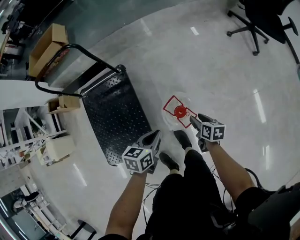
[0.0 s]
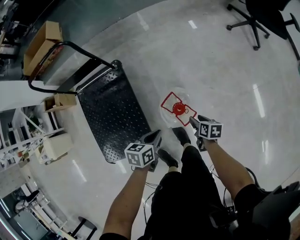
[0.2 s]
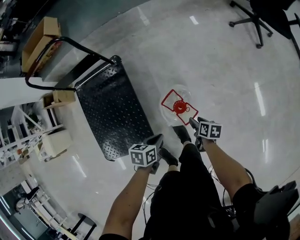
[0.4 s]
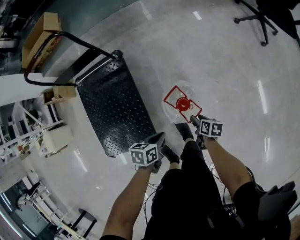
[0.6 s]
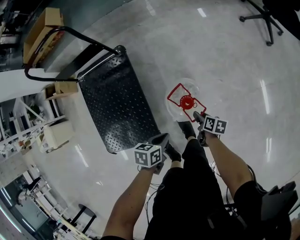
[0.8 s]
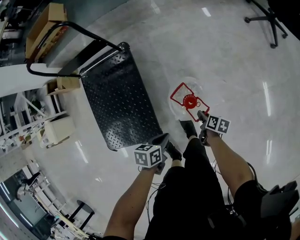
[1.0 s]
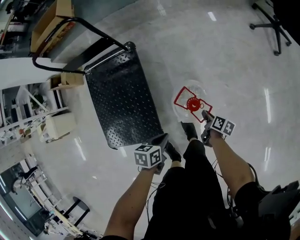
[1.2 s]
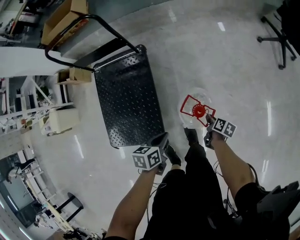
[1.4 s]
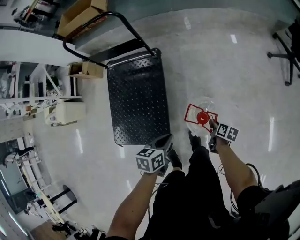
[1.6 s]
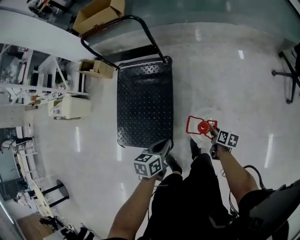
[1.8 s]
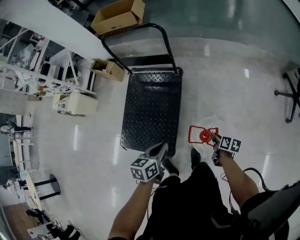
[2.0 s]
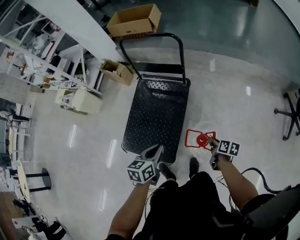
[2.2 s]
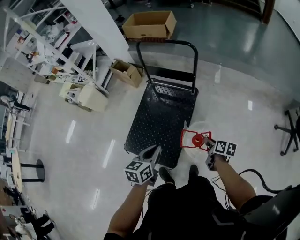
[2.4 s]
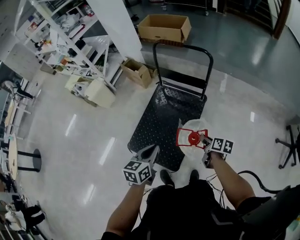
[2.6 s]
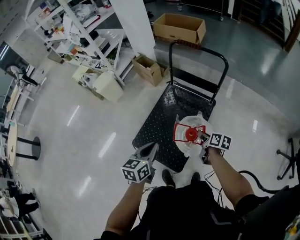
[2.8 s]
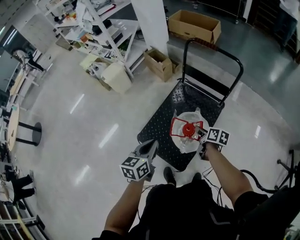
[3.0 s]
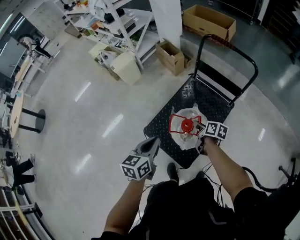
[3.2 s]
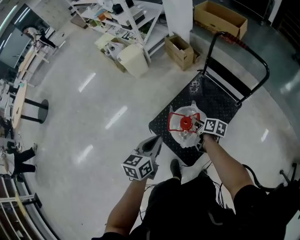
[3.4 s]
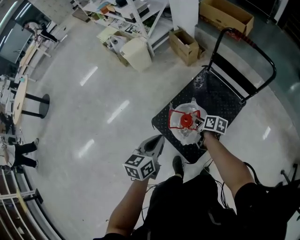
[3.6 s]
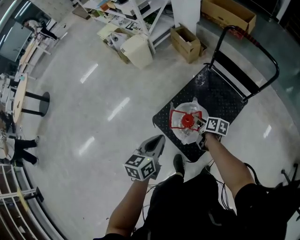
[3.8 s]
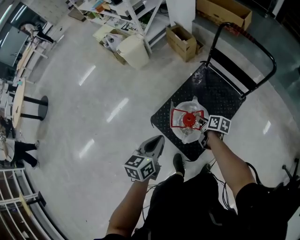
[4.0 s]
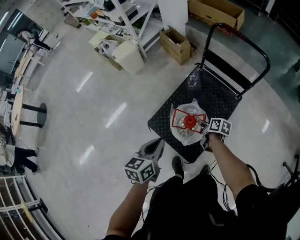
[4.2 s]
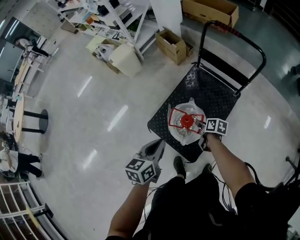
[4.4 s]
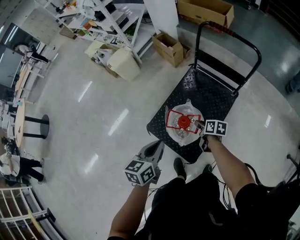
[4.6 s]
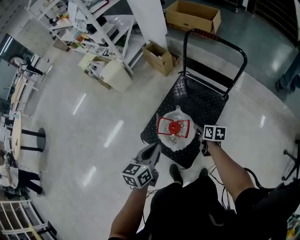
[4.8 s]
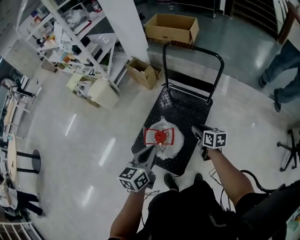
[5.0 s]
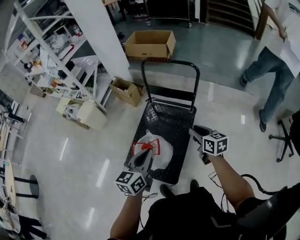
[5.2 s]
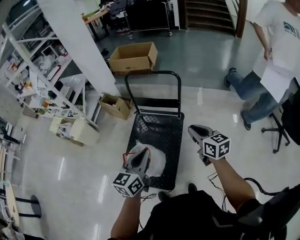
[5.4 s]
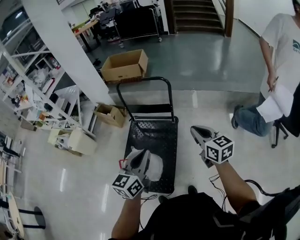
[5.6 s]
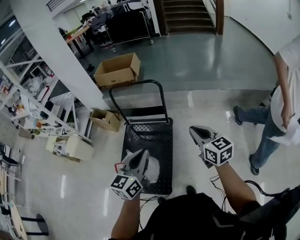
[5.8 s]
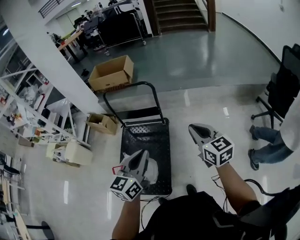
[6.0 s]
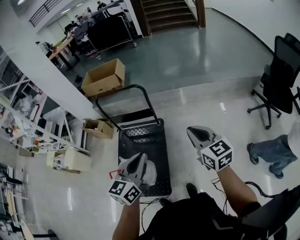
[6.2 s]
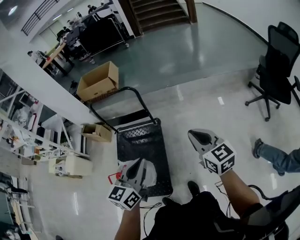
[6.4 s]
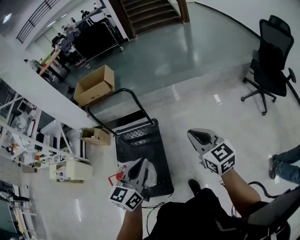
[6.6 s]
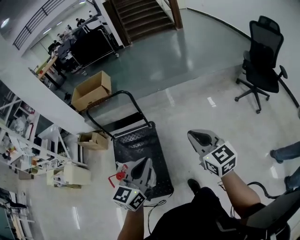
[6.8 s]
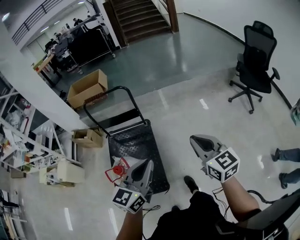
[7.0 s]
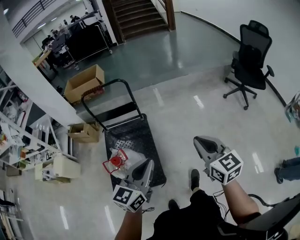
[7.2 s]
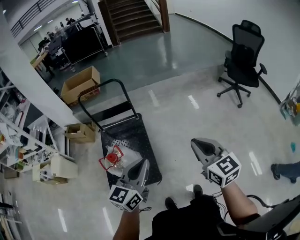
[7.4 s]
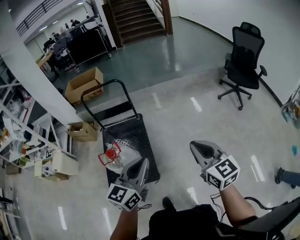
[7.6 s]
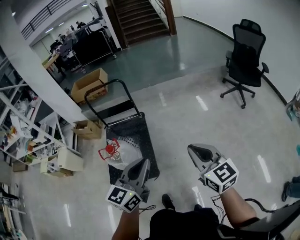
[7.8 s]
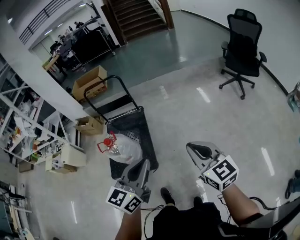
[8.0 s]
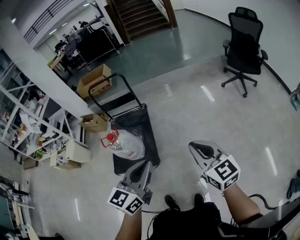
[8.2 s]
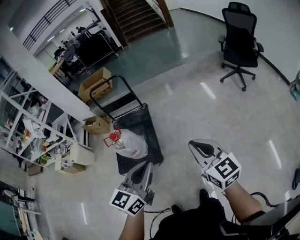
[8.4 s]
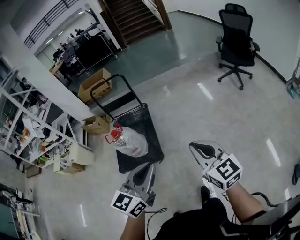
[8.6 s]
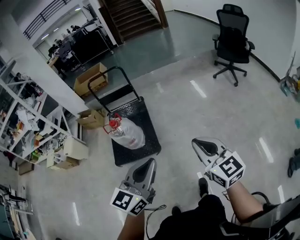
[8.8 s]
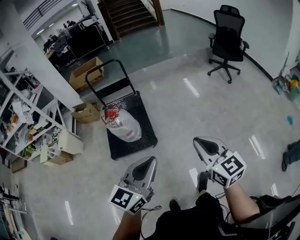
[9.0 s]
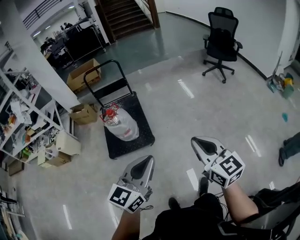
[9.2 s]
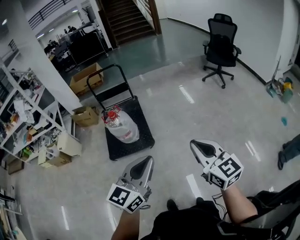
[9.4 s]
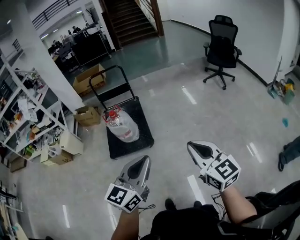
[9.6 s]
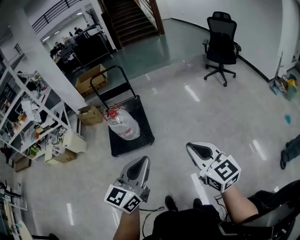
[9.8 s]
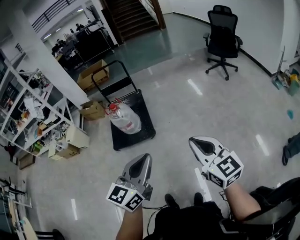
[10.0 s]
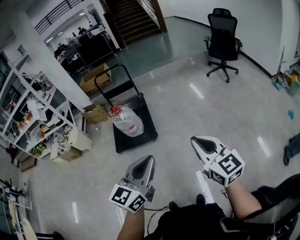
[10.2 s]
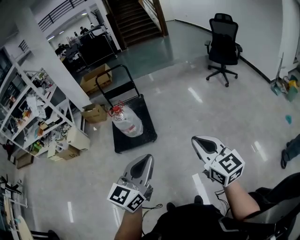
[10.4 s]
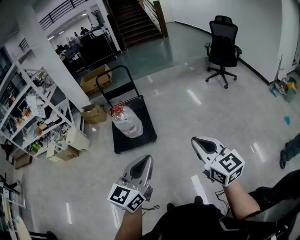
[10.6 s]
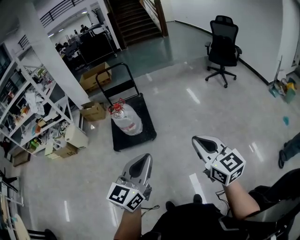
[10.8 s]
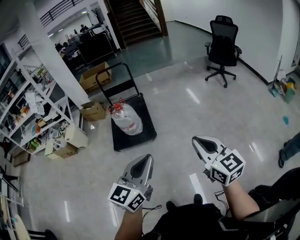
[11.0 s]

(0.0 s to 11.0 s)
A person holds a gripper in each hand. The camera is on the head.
0.0 s - 1.6 s: The left gripper moves to the left, approximately 5 cm, and reaches about 15 cm downward, then returns; the right gripper moves downward, approximately 10 cm, and closes.
1.6 s - 3.2 s: The pair of grippers is taken roughly 50 cm. The left gripper rotates some 50 degrees; the right gripper rotates approximately 50 degrees.
3.2 s - 4.8 s: The right gripper shifts about 5 cm to the right.
4.8 s - 6.2 s: The left gripper changes place by some 40 cm, and changes its angle by some 40 degrees. The right gripper ends up about 50 cm from where it was, turns by about 50 degrees, and closes up.
6.2 s - 7.8 s: Both grippers move backward, about 40 cm.
7.8 s - 9.4 s: The pair of grippers is taken backward, about 40 cm.
9.4 s - 11.0 s: Both grippers travel together backward, roughly 15 cm.

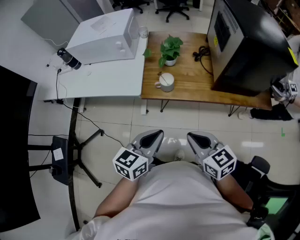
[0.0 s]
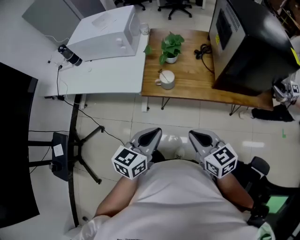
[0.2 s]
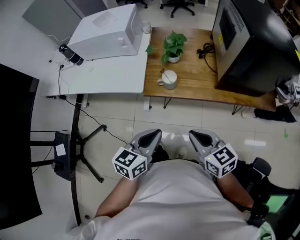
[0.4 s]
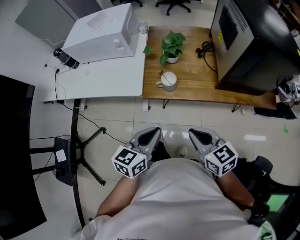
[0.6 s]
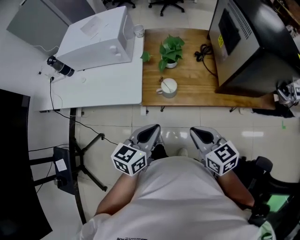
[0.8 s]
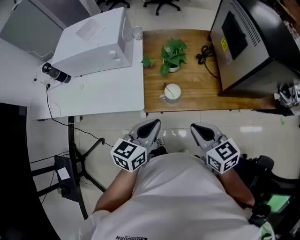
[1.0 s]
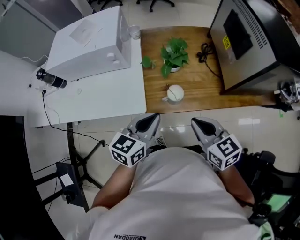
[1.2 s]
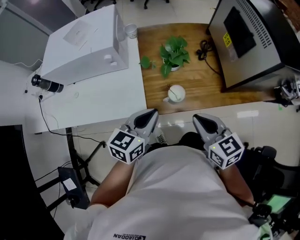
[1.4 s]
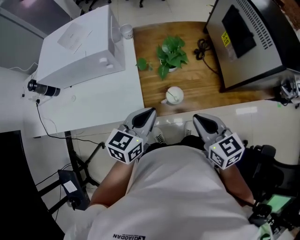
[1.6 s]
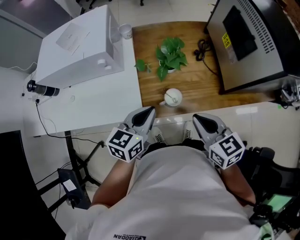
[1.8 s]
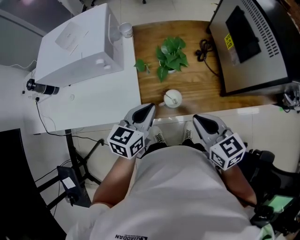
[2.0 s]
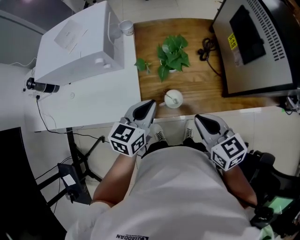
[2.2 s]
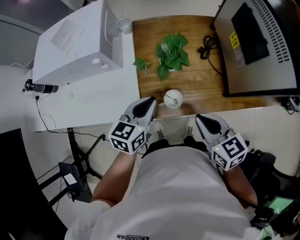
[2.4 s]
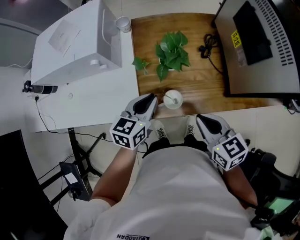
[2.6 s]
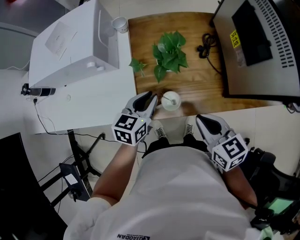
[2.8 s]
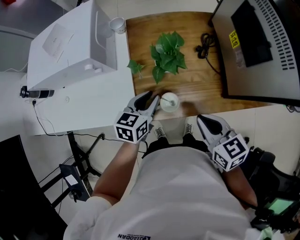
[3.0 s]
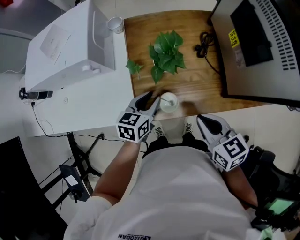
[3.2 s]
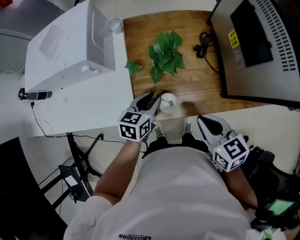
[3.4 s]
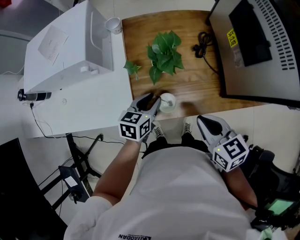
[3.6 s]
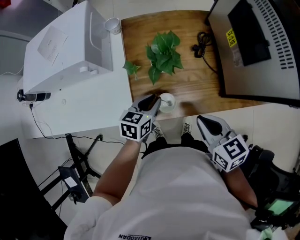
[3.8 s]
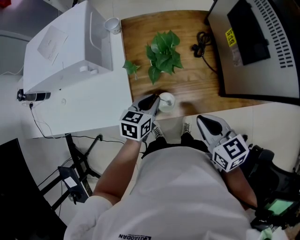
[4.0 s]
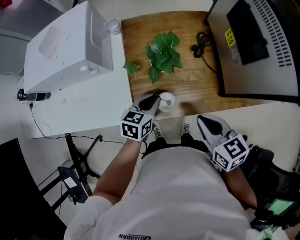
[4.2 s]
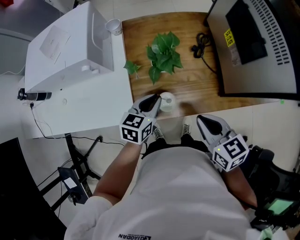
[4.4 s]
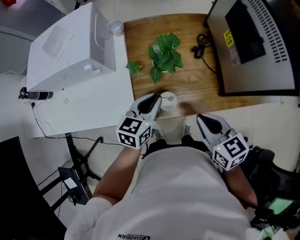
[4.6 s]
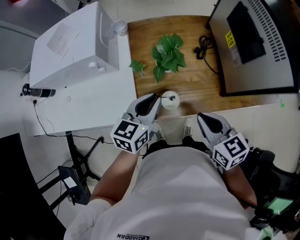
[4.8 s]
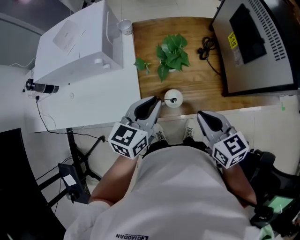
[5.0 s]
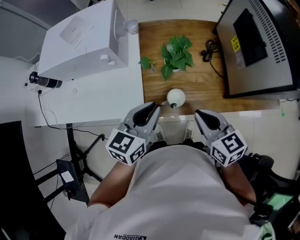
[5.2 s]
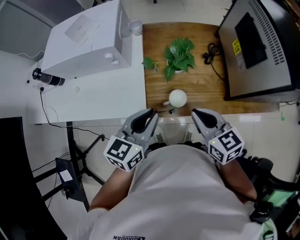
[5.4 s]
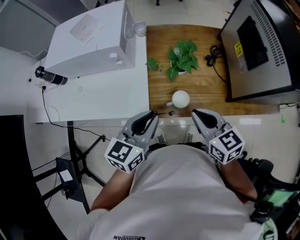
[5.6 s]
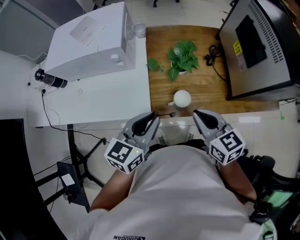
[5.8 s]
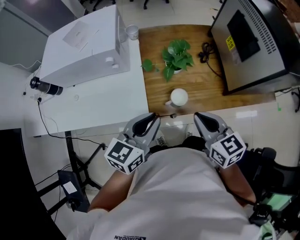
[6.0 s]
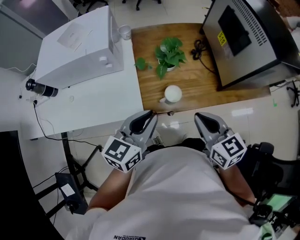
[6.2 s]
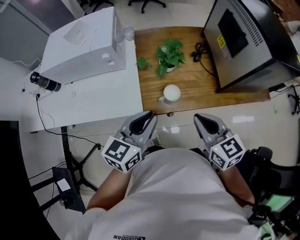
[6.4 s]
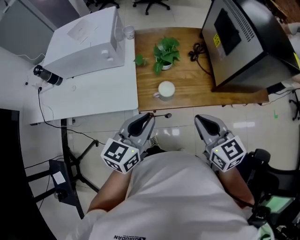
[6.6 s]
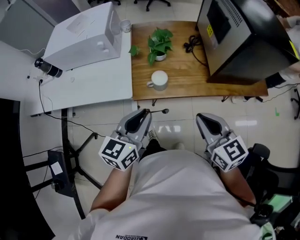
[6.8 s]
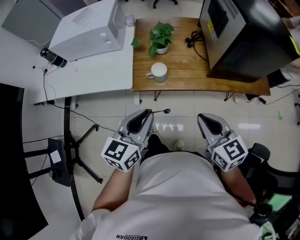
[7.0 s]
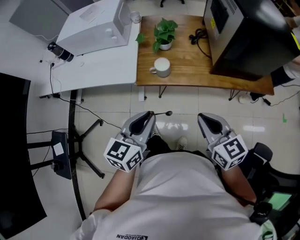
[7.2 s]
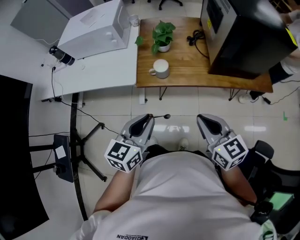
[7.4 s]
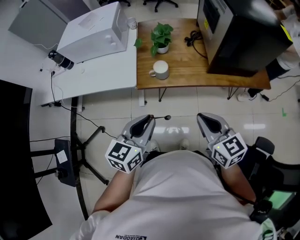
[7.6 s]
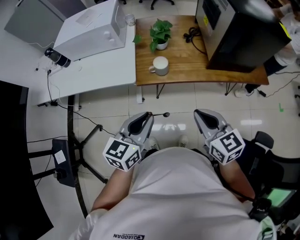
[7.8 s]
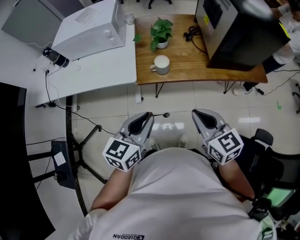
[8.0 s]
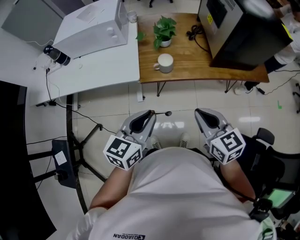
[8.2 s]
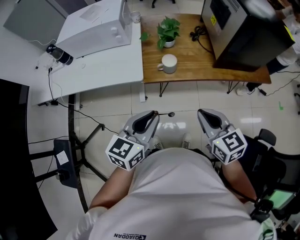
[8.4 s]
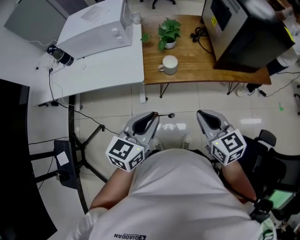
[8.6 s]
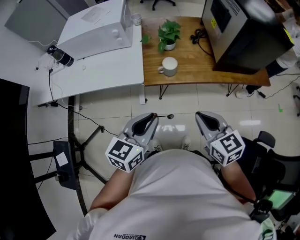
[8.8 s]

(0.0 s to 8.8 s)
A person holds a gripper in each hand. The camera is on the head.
0.0 s - 1.4 s: Both grippers travel together forward, approximately 20 cm.
1.4 s - 3.0 s: The right gripper is displaced forward and to the right by some 10 cm. The left gripper shifts roughly 15 cm forward and downward, and opens its fingers.
3.0 s - 4.4 s: The grippers make only small movements.
4.4 s - 5.8 s: The left gripper is displaced upward, backward and to the left by about 20 cm; the right gripper heads to the left, covering roughly 10 cm.
5.8 s - 7.4 s: The two grippers go some 25 cm backward and to the right.
7.4 s - 8.8 s: Both grippers move to the left, some 5 cm.

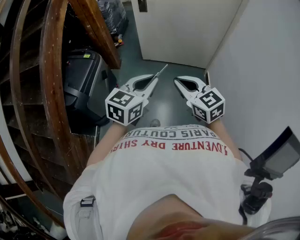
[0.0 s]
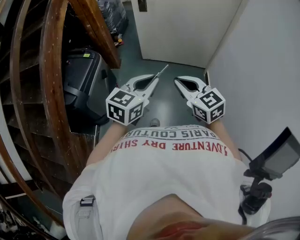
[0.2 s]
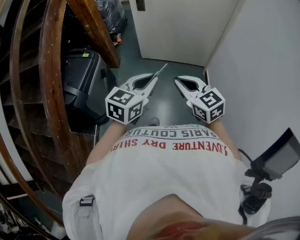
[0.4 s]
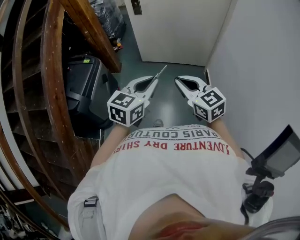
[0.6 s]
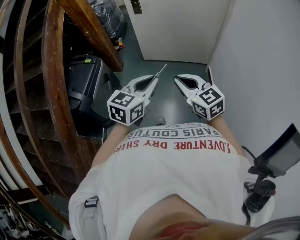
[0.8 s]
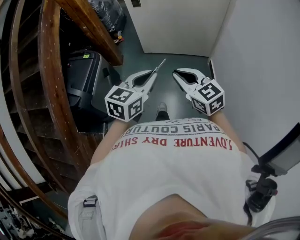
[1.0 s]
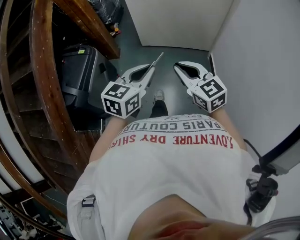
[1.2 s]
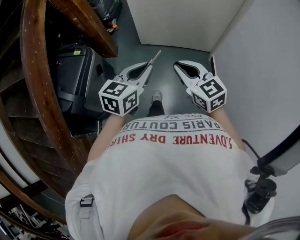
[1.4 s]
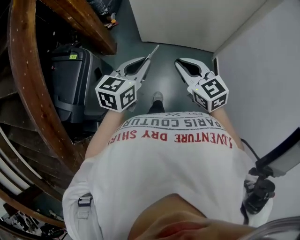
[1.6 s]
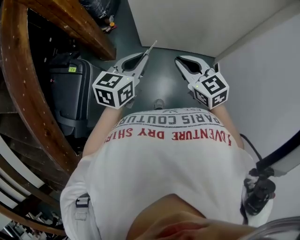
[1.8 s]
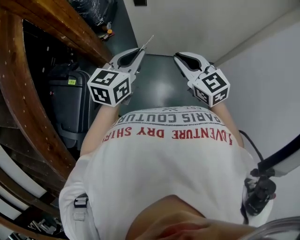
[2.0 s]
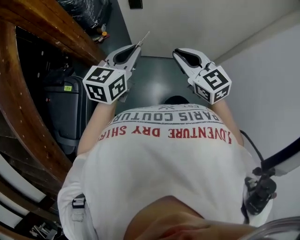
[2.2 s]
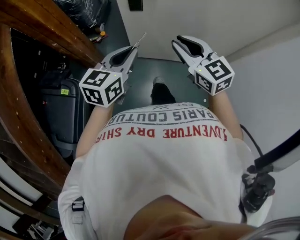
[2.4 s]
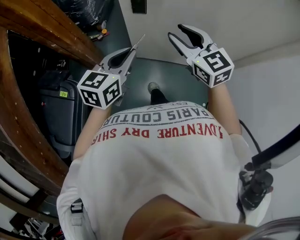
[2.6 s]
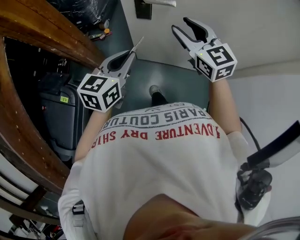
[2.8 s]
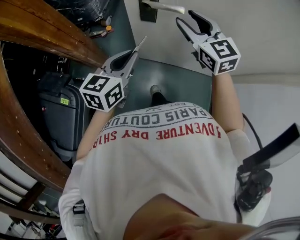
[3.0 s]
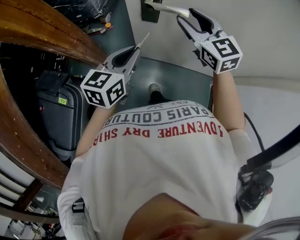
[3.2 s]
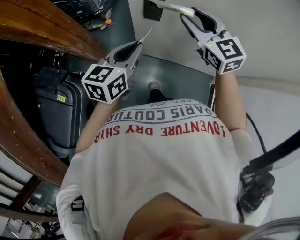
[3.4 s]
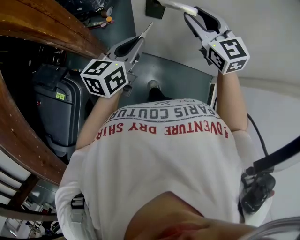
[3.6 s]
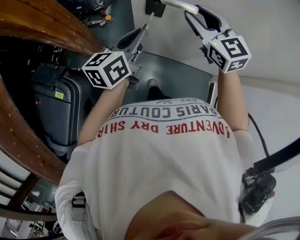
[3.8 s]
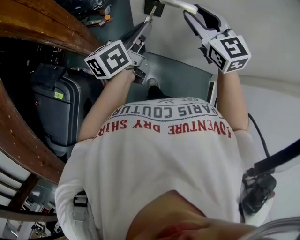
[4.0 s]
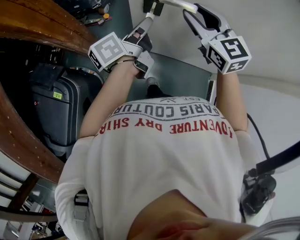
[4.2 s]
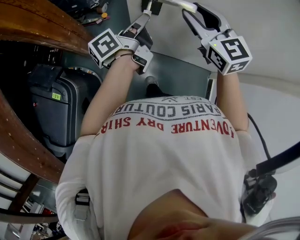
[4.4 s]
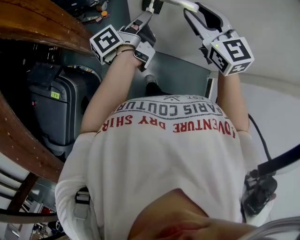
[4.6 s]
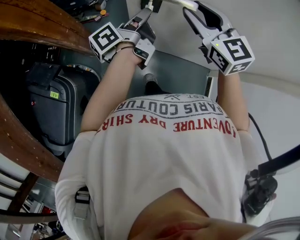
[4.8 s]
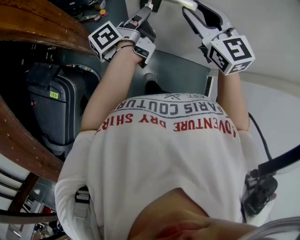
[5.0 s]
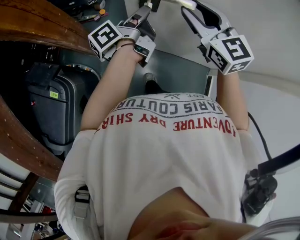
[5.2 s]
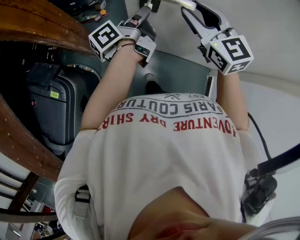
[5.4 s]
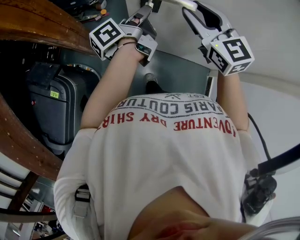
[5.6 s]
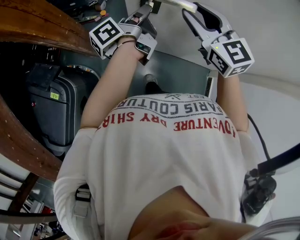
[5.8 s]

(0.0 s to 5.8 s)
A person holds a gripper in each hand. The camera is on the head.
0.0 s - 1.4 s: Both grippers travel together forward and downward, some 15 cm.
1.4 s - 2.8 s: Both grippers are carried forward, about 50 cm. The right gripper opens up.
2.8 s - 4.4 s: The right gripper travels forward by roughly 10 cm. Meanwhile the left gripper shifts about 15 cm forward, and twists roughly 60 degrees counterclockwise, seen from behind.
4.4 s - 5.8 s: The grippers stay close to where they were, moving slightly.
